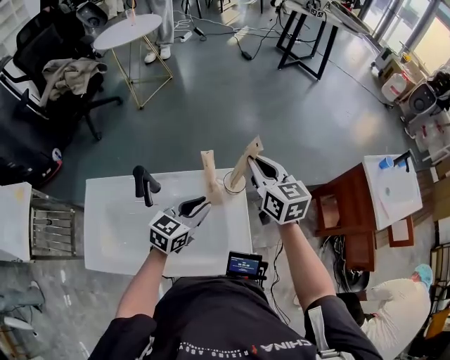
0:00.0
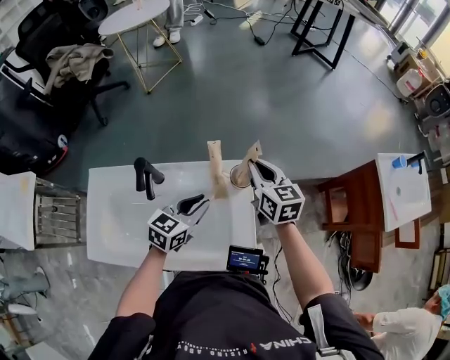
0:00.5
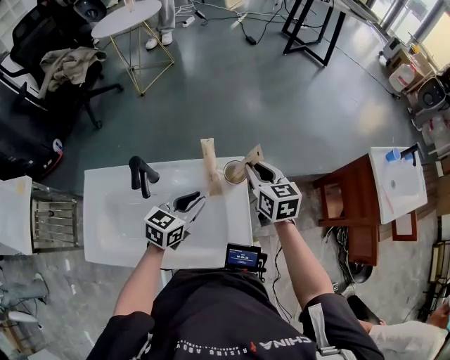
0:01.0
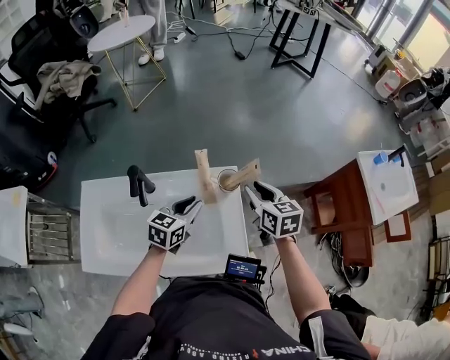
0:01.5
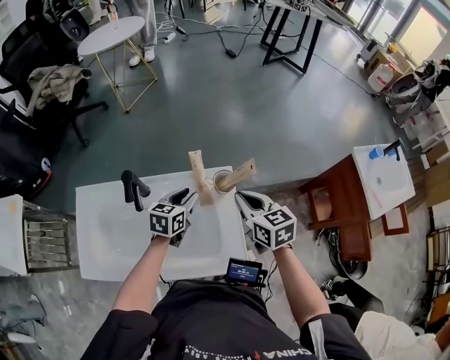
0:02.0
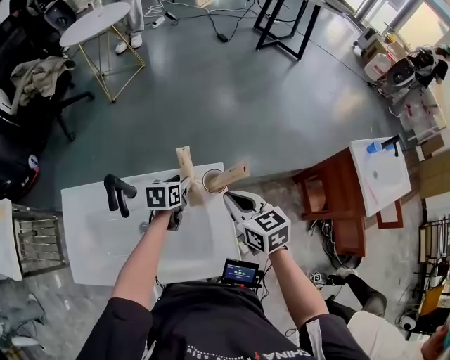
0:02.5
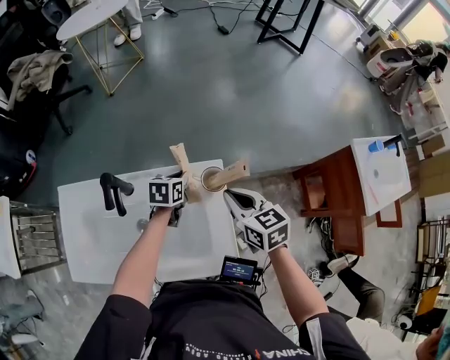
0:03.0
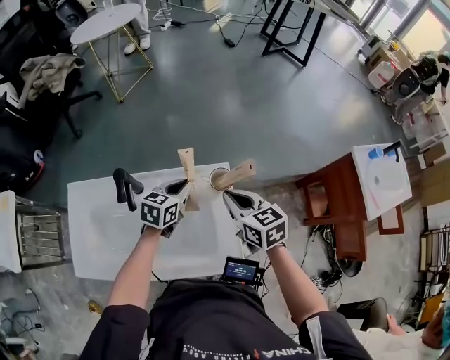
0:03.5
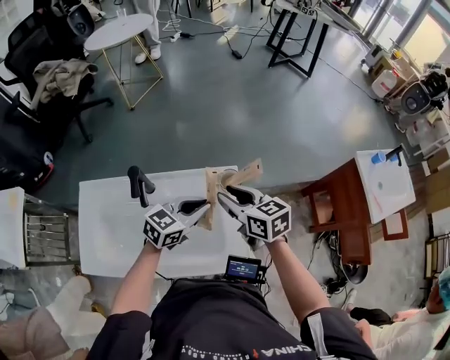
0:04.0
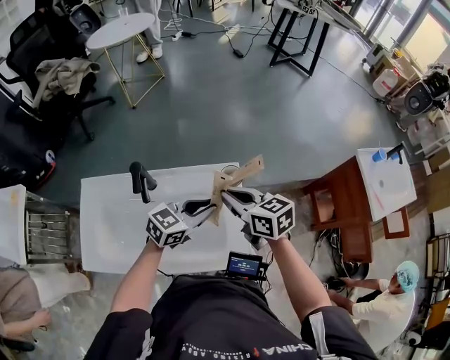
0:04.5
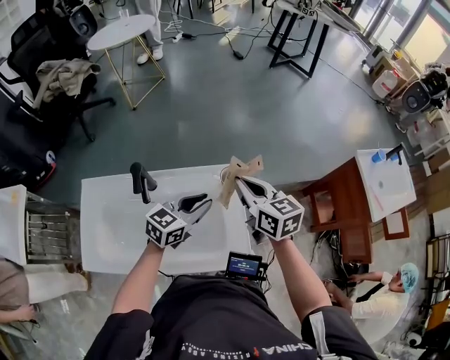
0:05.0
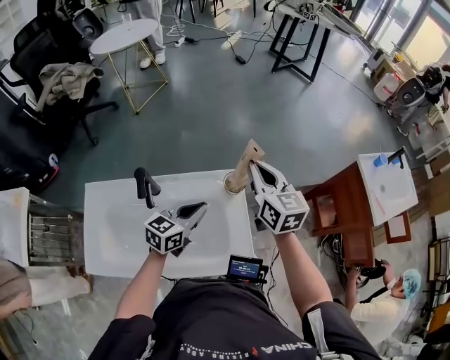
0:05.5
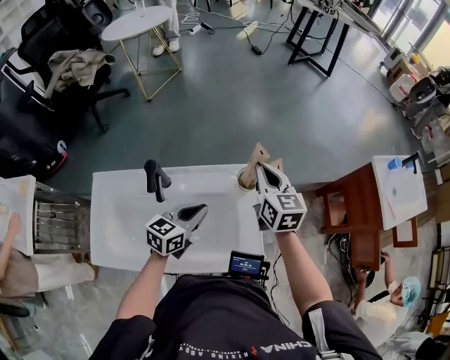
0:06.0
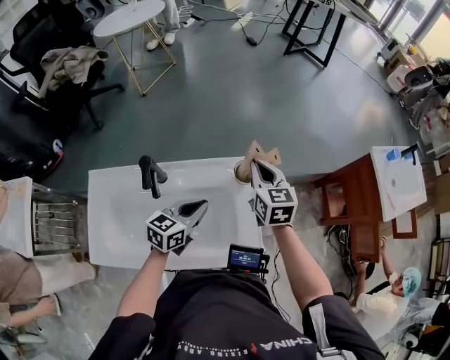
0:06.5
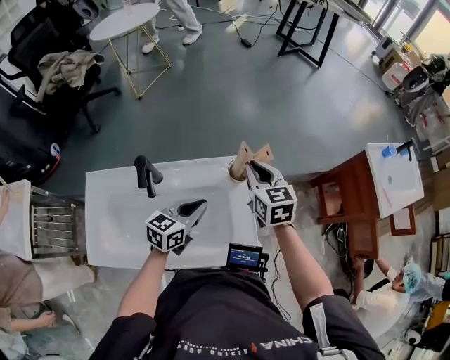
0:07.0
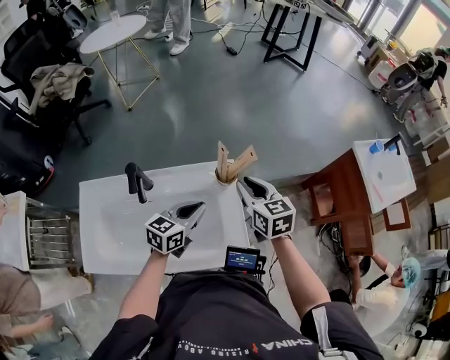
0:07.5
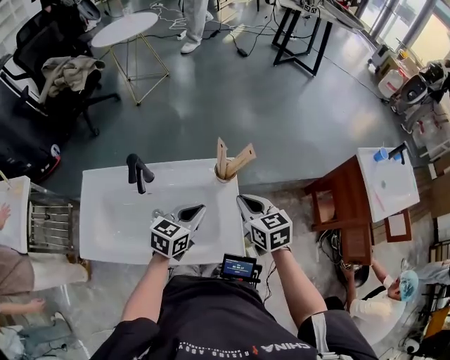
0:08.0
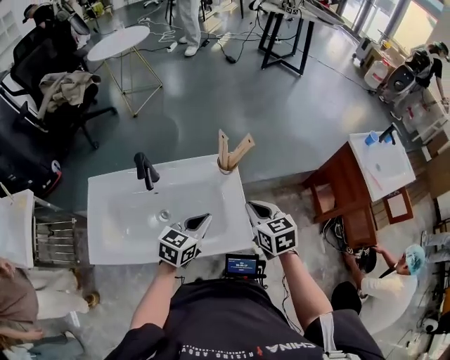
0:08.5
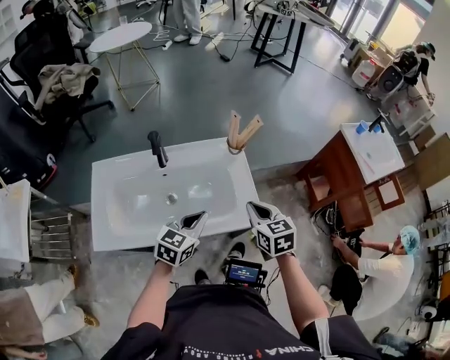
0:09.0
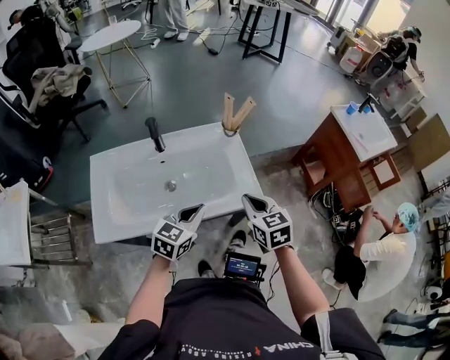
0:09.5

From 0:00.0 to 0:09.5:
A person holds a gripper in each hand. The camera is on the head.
From 0:00.0 to 0:02.0: The right gripper heads backward and downward, covering approximately 10 cm, and opens and closes again; the left gripper moves downward, some 5 cm.
From 0:02.0 to 0:04.0: The right gripper travels to the left by approximately 5 cm, and opens up; the left gripper heads upward and backward, covering some 10 cm, swivels about 30 degrees, and closes up.
From 0:04.0 to 0:05.5: The right gripper heads upward, forward and to the right, covering about 10 cm, rotates about 30 degrees, and closes.
From 0:05.5 to 0:07.5: The right gripper goes approximately 10 cm downward, and opens its fingers.
From 0:07.5 to 0:09.5: Both grippers travel together backward, approximately 25 cm. The right gripper closes.

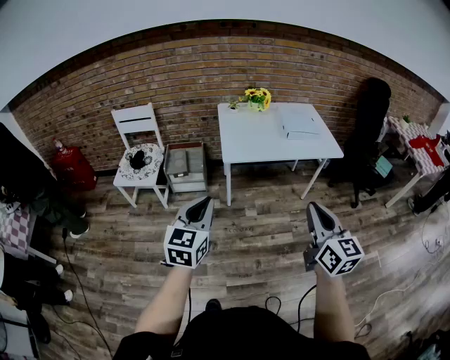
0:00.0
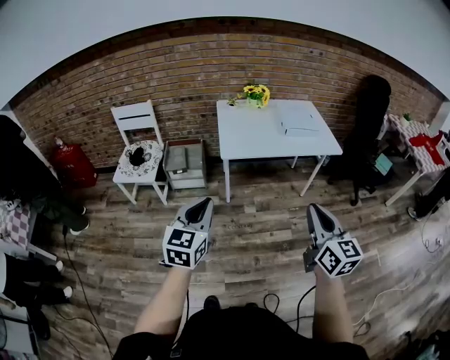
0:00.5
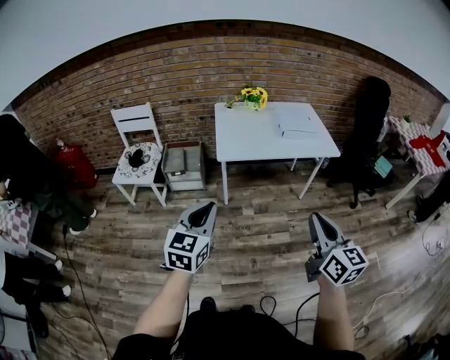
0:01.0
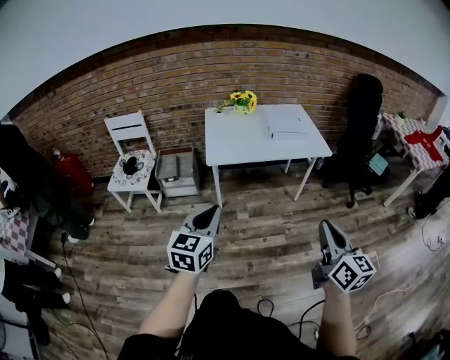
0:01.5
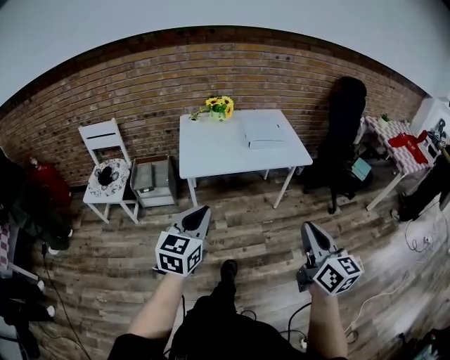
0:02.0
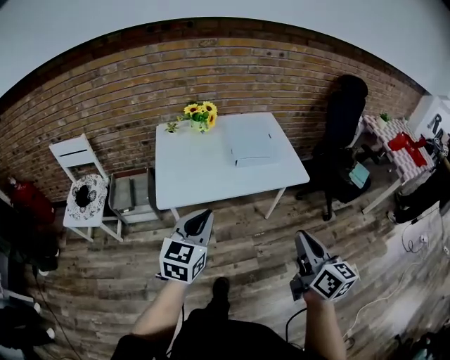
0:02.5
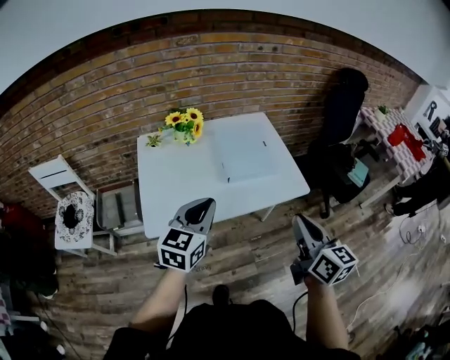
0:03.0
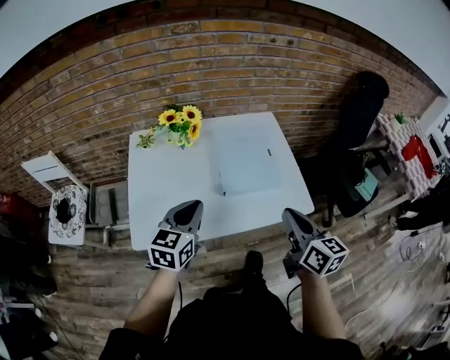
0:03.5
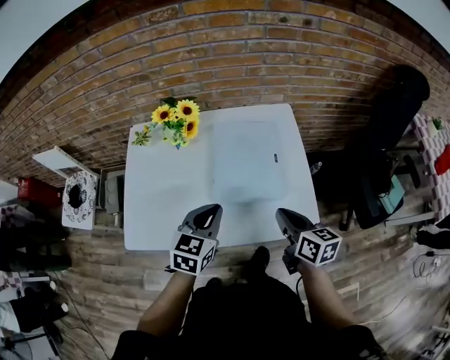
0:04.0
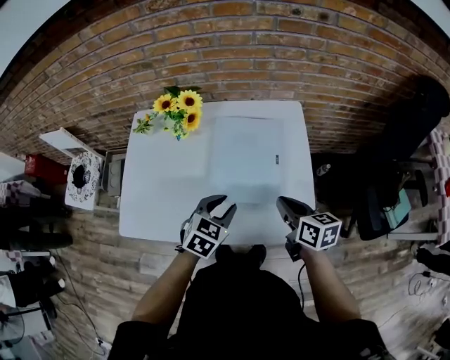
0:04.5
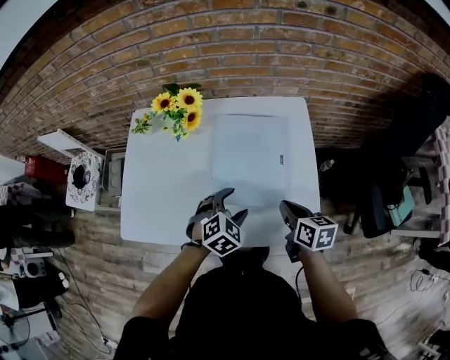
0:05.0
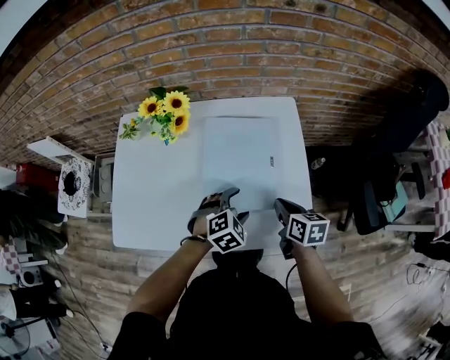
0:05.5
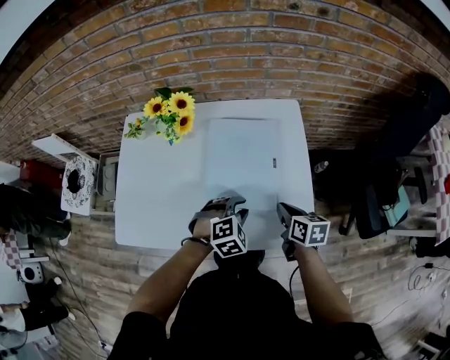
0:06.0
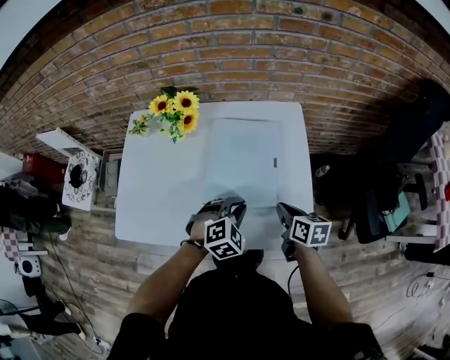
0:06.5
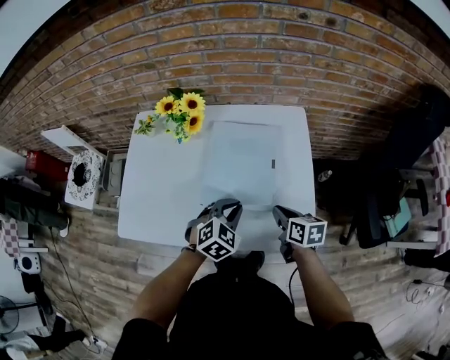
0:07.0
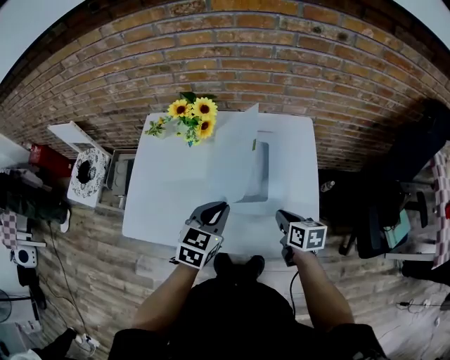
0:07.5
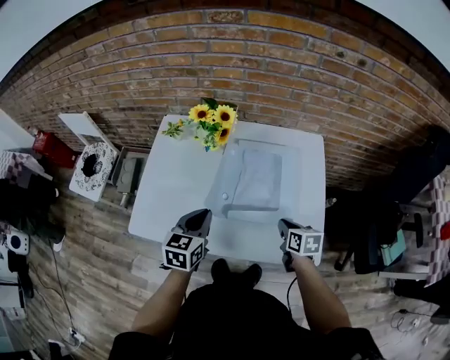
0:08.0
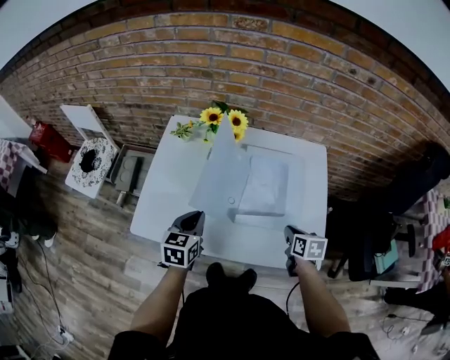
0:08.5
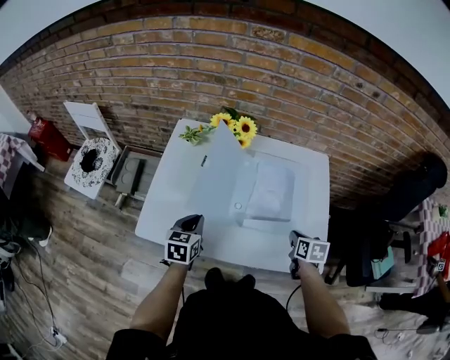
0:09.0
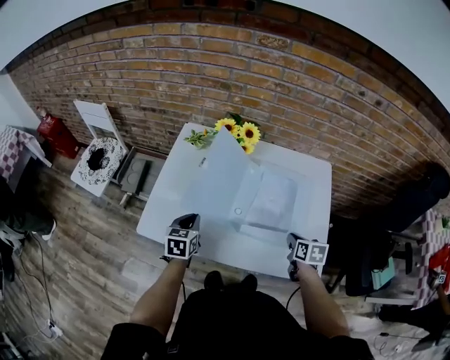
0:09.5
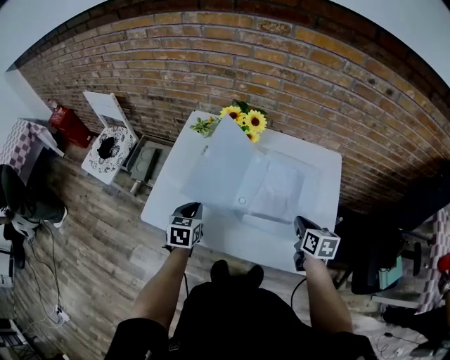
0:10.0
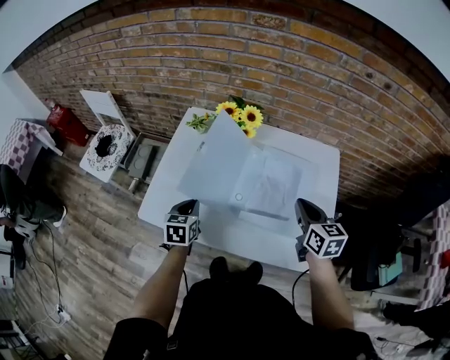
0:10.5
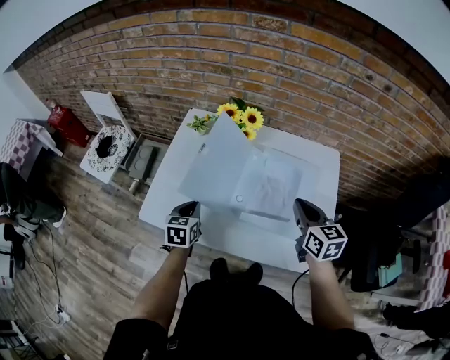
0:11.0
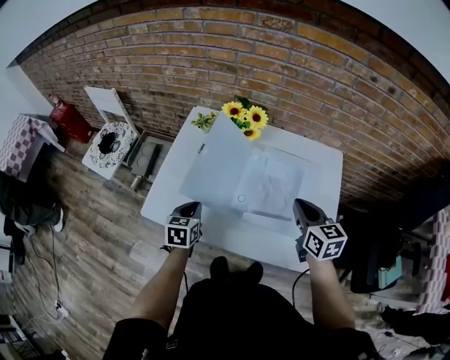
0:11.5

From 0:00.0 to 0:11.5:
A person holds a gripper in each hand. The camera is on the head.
From 0:00.0 to 0:02.0: Both grippers move to the right, roughly 15 cm.
From 0:02.0 to 0:04.0: The two grippers travel together, forward, roughly 60 cm. The right gripper swivels roughly 30 degrees.
From 0:04.0 to 0:06.0: The right gripper is displaced downward, forward and to the right by approximately 15 cm. The left gripper is displaced downward and to the right by about 15 cm, rolls clockwise, seen from behind, by roughly 40 degrees, and opens and closes again.
From 0:06.0 to 0:07.5: The left gripper shifts roughly 15 cm upward and to the left, and twists about 50 degrees counterclockwise, seen from behind.
From 0:07.5 to 0:09.5: The left gripper is displaced to the left and downward by some 25 cm, and rotates roughly 30 degrees.
From 0:09.5 to 0:11.5: The right gripper moves upward, approximately 15 cm, and rotates approximately 30 degrees.

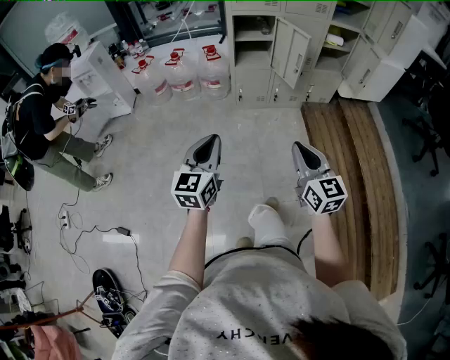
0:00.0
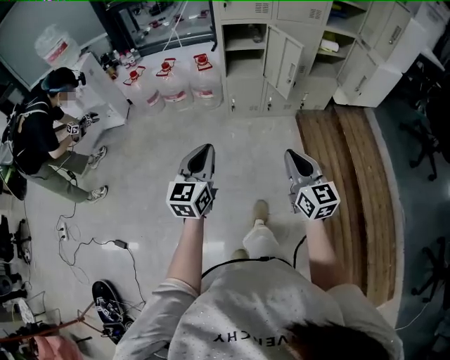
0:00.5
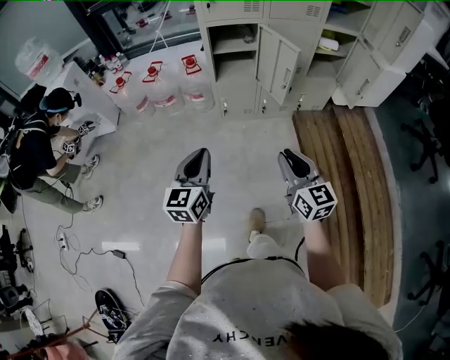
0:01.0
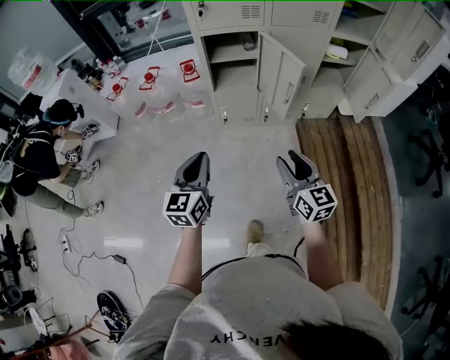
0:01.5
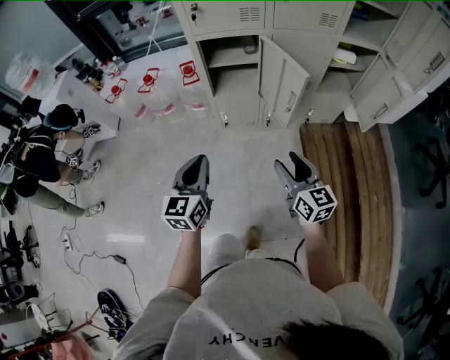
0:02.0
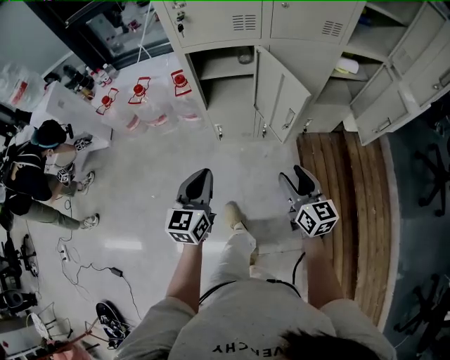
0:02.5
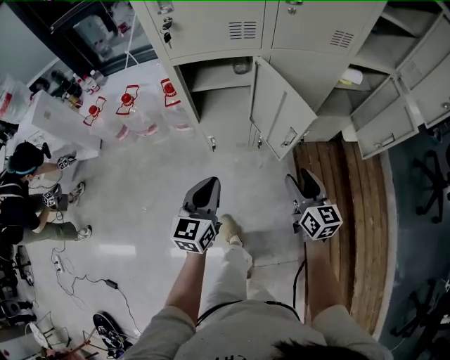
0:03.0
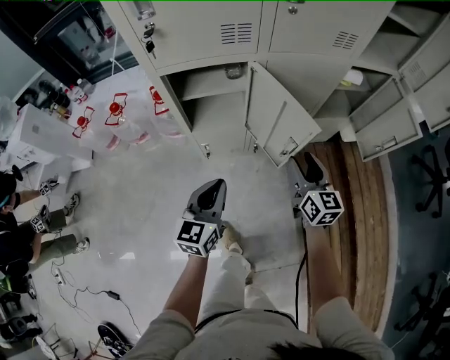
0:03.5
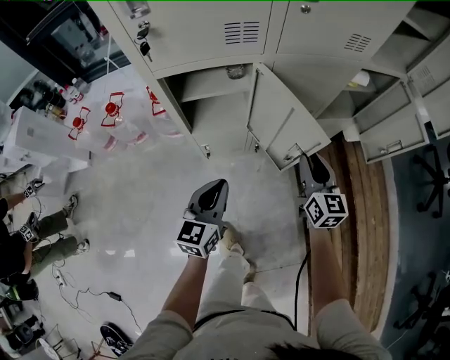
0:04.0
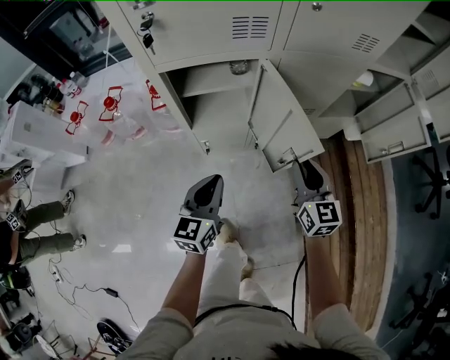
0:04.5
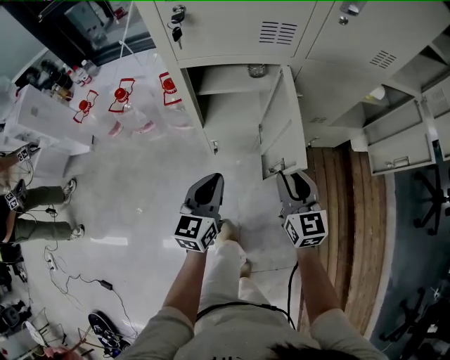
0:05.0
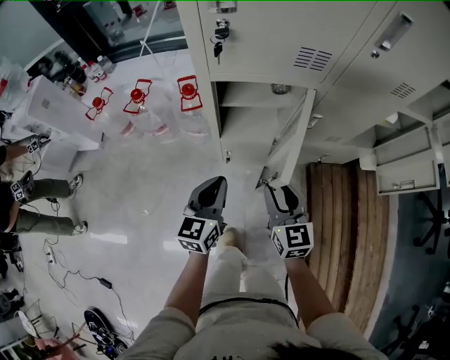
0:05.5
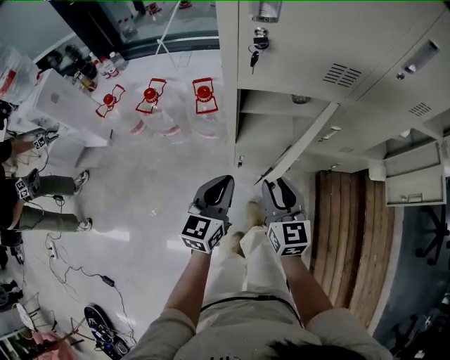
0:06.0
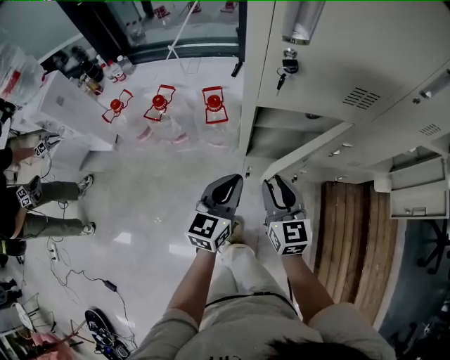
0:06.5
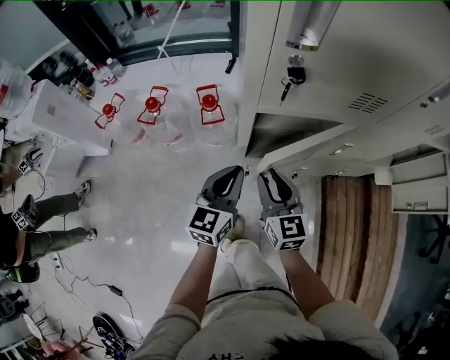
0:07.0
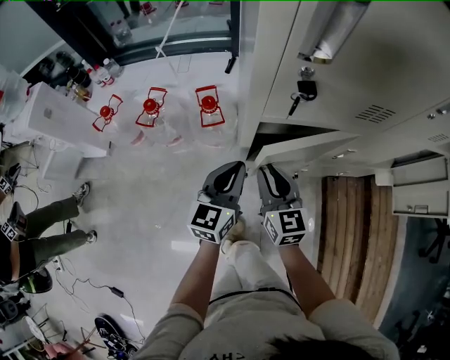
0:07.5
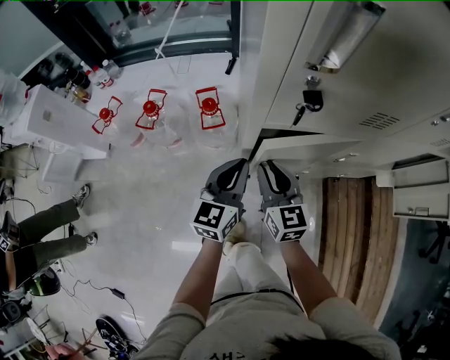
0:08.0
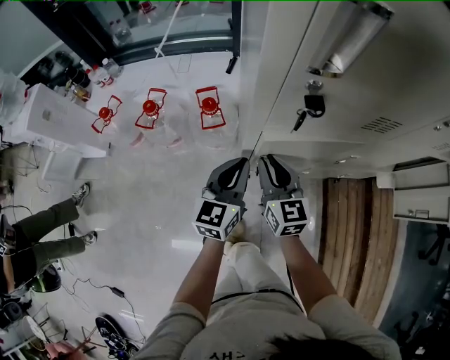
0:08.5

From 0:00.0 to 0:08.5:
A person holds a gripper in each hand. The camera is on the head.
From 0:00.0 to 0:02.0: Both grippers travel together forward, about 35 cm. The right gripper opens up.
From 0:02.0 to 0:04.0: The left gripper goes approximately 25 cm forward and downward. Meanwhile the right gripper moves forward, roughly 25 cm, changes its angle by approximately 20 degrees, and closes its fingers.
From 0:04.0 to 0:06.5: The right gripper moves to the left, some 30 cm, and swivels roughly 20 degrees, while the left gripper moves to the left and forward, approximately 20 cm.
From 0:06.5 to 0:08.5: The grippers both shift forward by roughly 10 cm.
